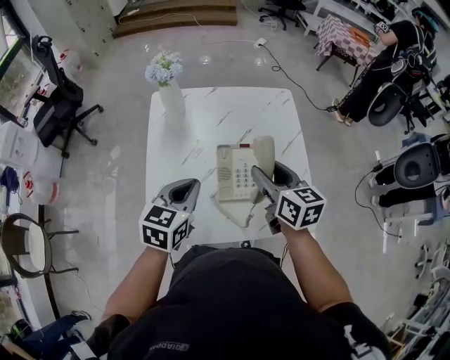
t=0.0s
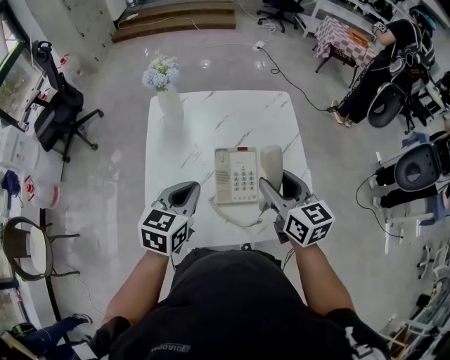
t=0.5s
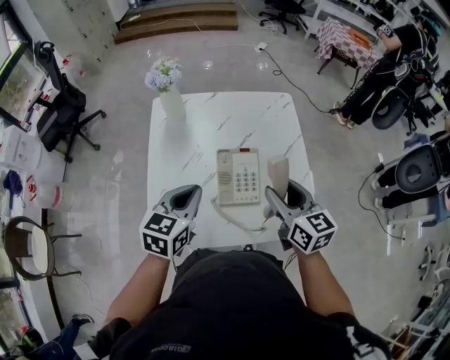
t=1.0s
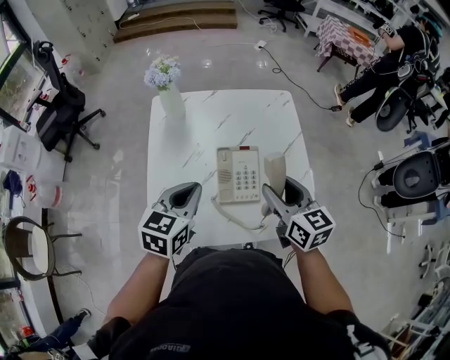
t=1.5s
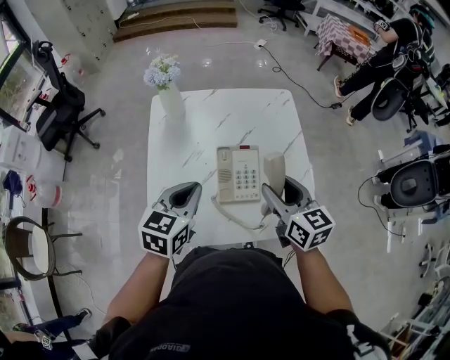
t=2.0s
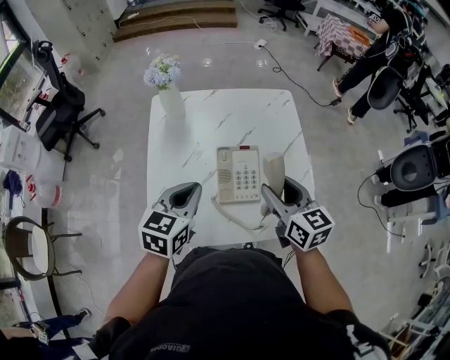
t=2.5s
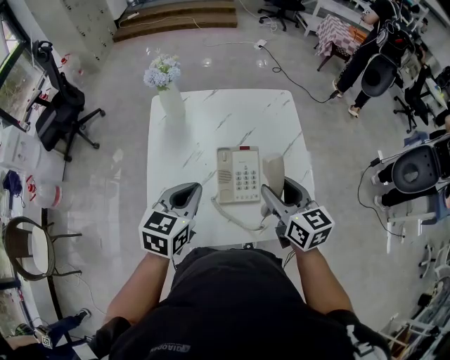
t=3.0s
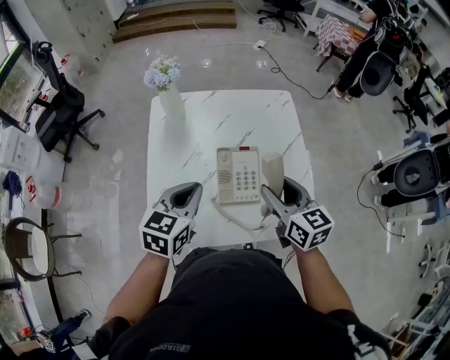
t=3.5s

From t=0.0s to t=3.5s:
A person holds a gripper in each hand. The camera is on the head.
From t=0.0s to t=2.0s: The grippers make only small movements.
From t=2.0s to t=3.5s: Both grippers stay put.

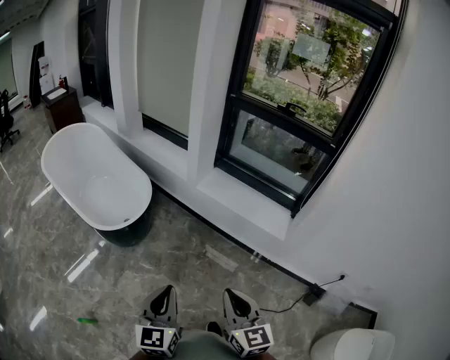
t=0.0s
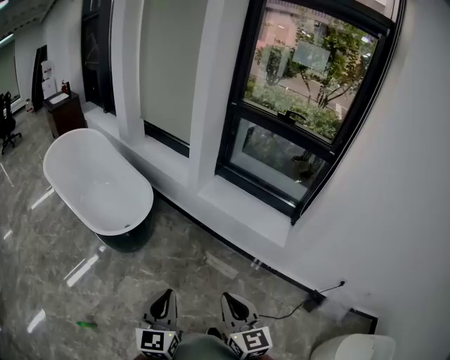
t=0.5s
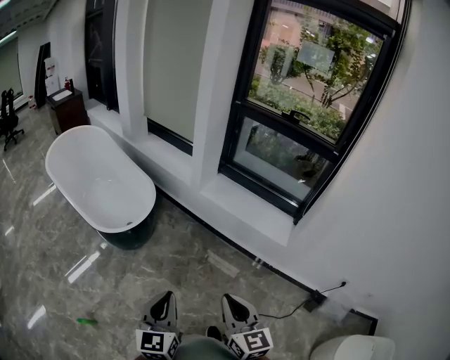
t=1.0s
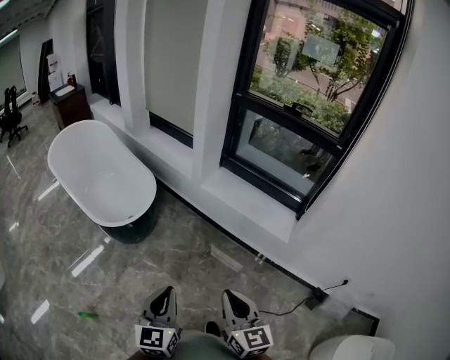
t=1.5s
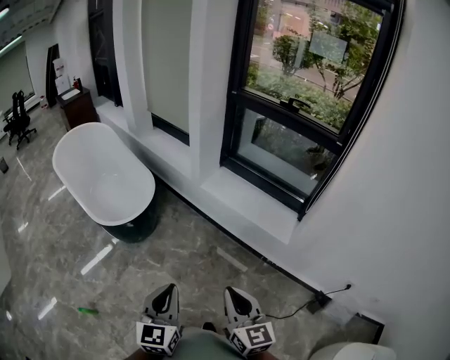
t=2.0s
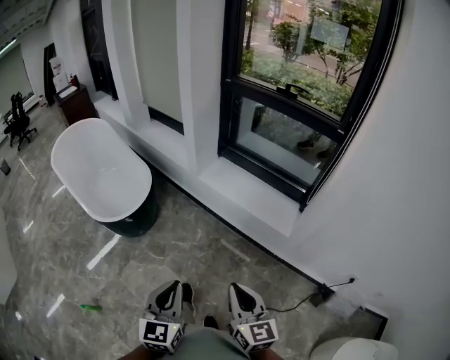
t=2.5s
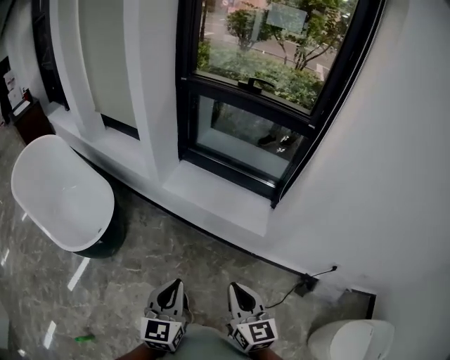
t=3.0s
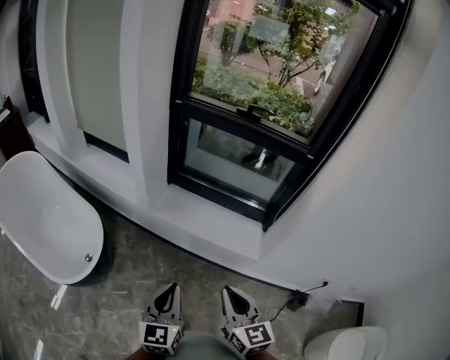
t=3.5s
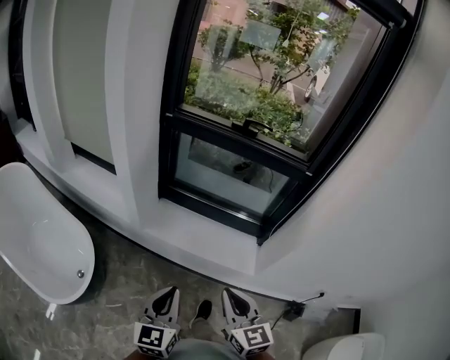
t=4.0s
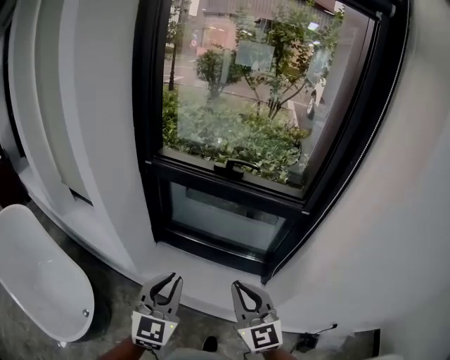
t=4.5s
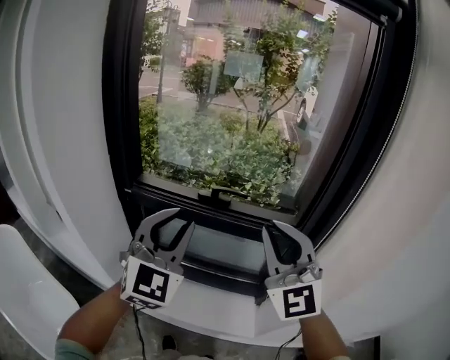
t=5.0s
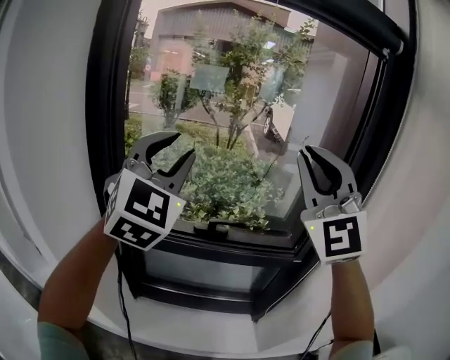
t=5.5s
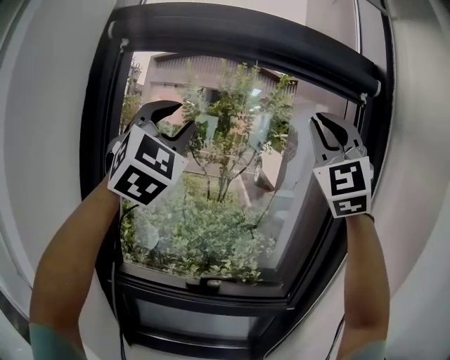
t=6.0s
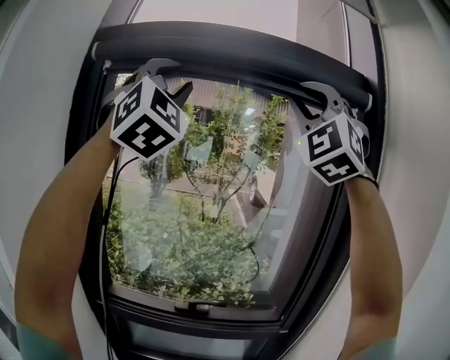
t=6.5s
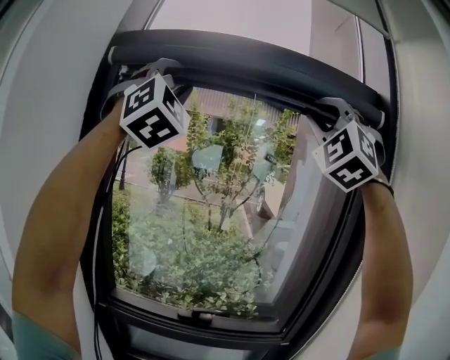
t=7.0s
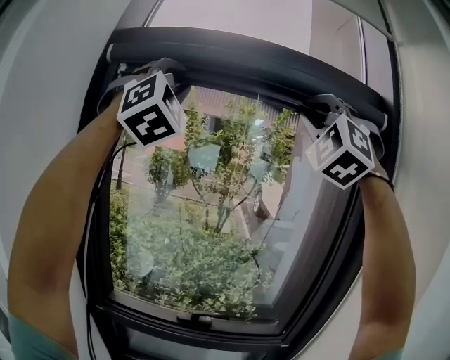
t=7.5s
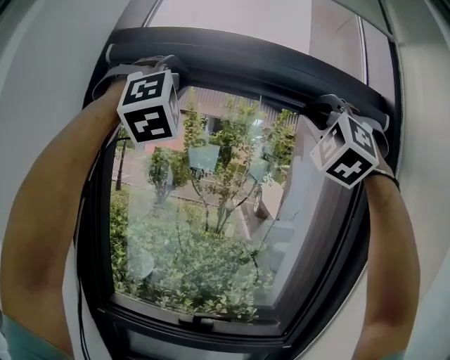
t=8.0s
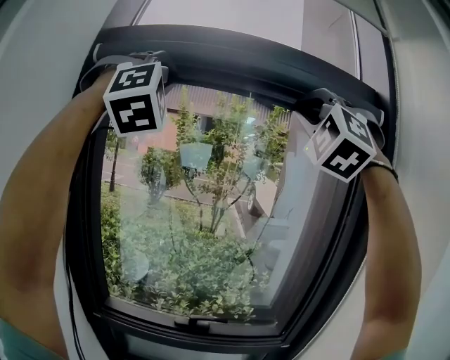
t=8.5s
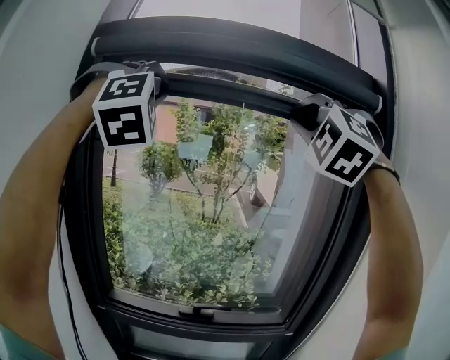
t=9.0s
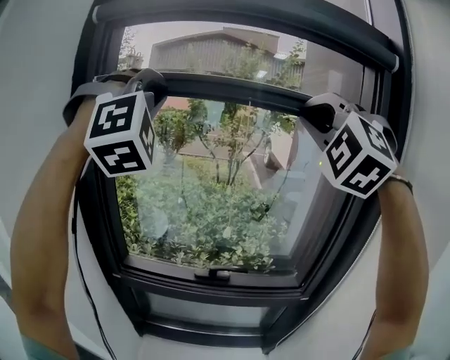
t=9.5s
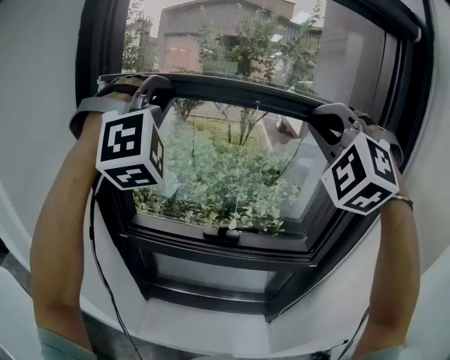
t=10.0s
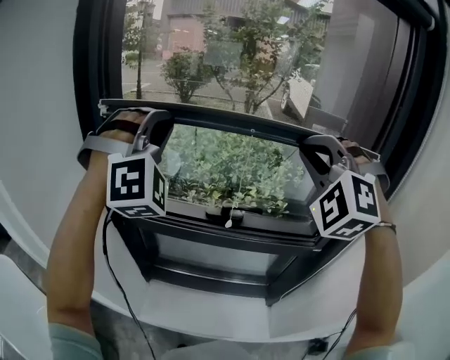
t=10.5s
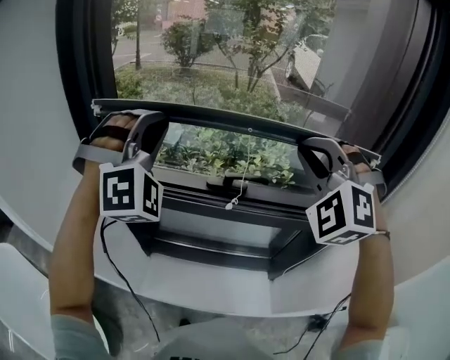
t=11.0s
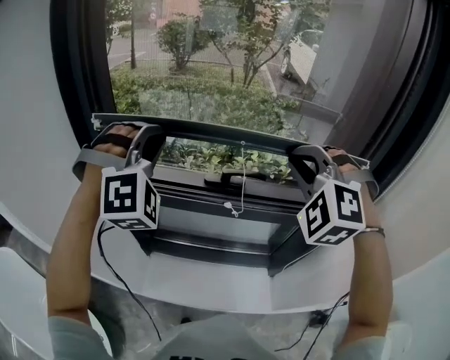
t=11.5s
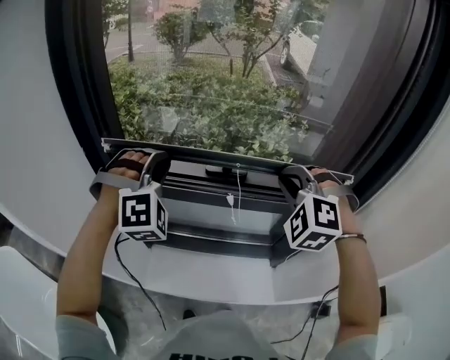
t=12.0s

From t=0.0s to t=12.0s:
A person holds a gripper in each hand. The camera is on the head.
From t=0.0s to t=2.0s: The grippers both shift to the right by roughly 10 cm.
From t=2.0s to t=4.0s: Both grippers move forward, approximately 35 cm. The left gripper changes its angle by some 30 degrees; the right gripper turns by roughly 20 degrees.
From t=4.0s to t=6.0s: The two grippers travel together, forward, roughly 50 cm. Both grippers travel together upward, roughly 70 cm. The left gripper twists approximately 60 degrees clockwise, seen from behind, and opens its fingers. The right gripper rolls counterclockwise, seen from behind, by approximately 70 degrees.
From t=6.0s to t=8.0s: The right gripper is displaced upward and forward by some 10 cm, and changes its angle by approximately 40 degrees. The left gripper is displaced upward by some 15 cm, swivels some 40 degrees, and closes its fingers.
From t=8.0s to t=10.0s: The two grippers go about 25 cm downward. The right gripper turns by roughly 20 degrees.
From t=10.0s to t=12.0s: The two grippers go approximately 35 cm downward. The right gripper changes its angle by some 30 degrees. Meanwhile the left gripper rotates approximately 30 degrees.

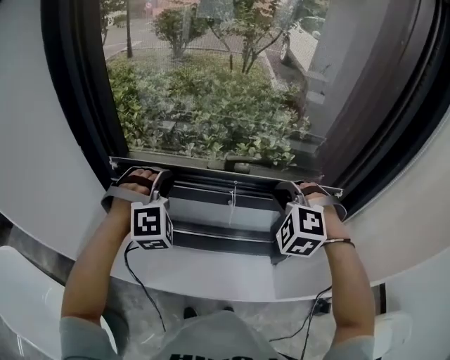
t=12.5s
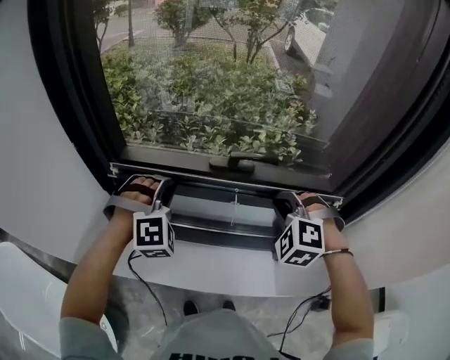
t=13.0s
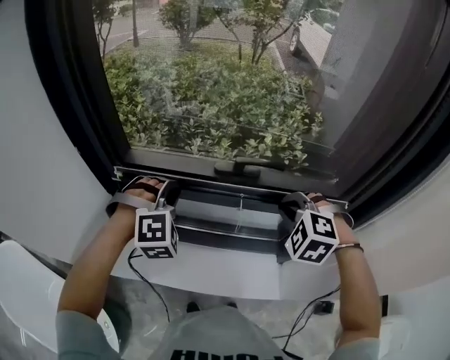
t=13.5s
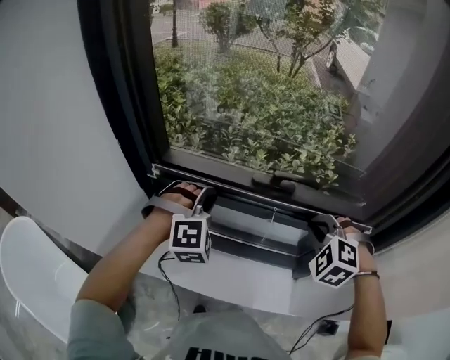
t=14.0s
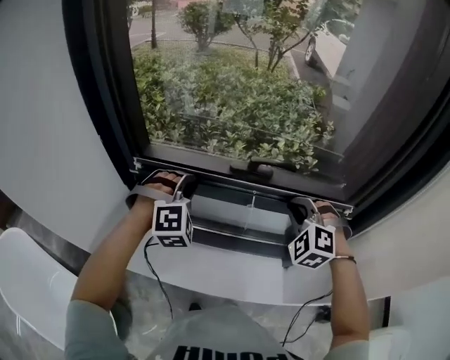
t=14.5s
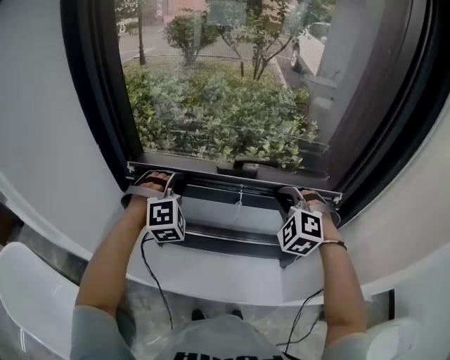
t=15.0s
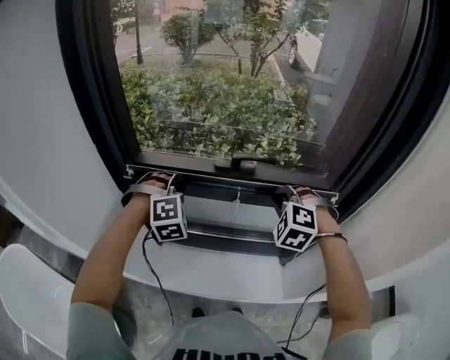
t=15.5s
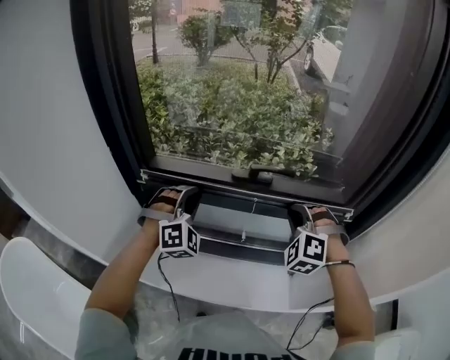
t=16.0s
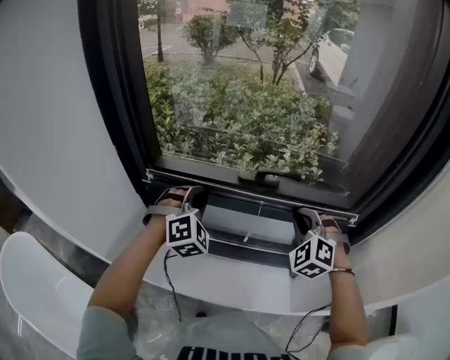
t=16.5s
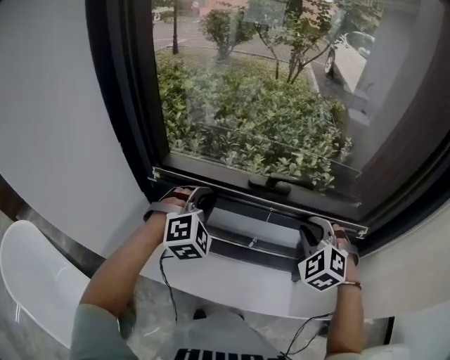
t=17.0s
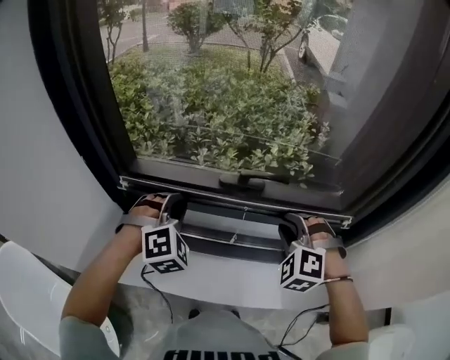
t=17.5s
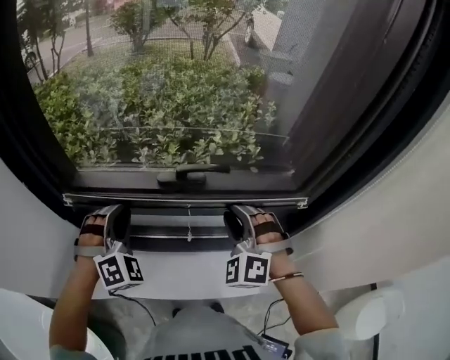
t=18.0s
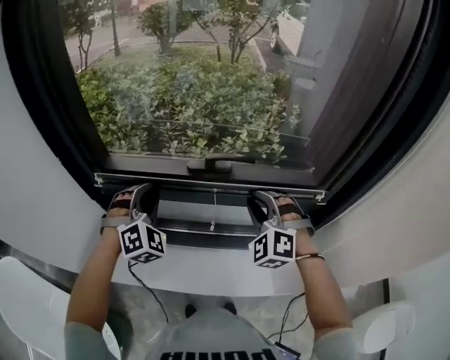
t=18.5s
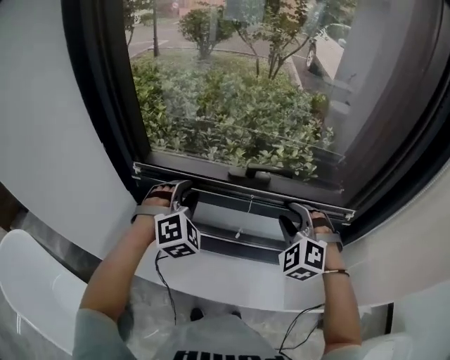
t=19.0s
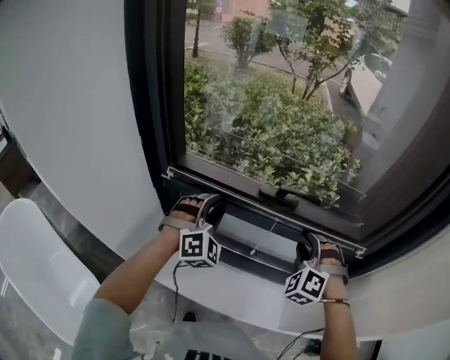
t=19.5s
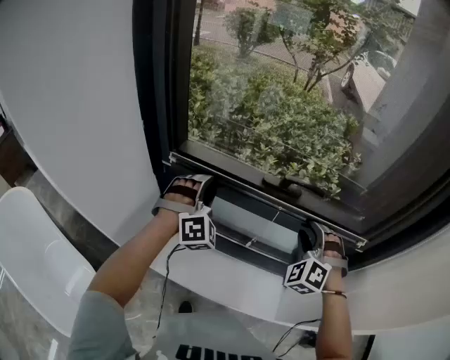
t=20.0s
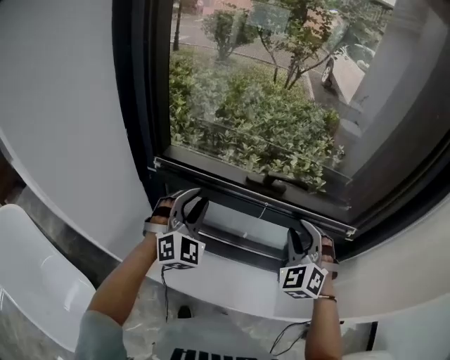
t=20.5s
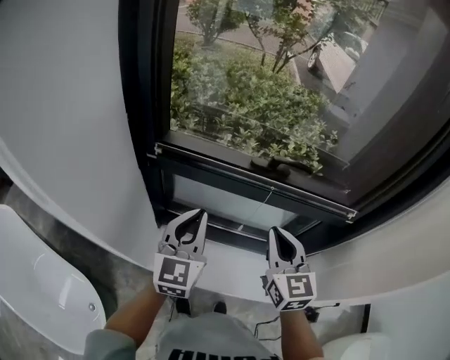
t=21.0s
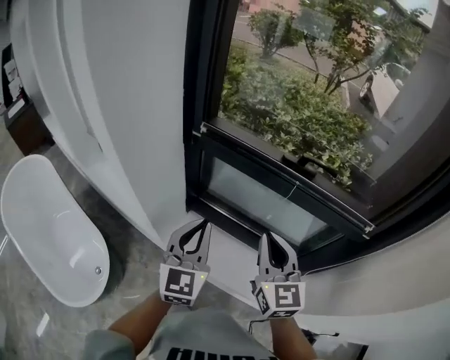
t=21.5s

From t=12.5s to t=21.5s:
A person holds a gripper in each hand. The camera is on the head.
From t=12.5s to t=14.5s: There are only small adjustments of the grippers.
From t=14.5s to t=17.0s: The grippers stay close to where they were, moving slightly.
From t=17.0s to t=19.5s: The right gripper opens.
From t=19.5s to t=21.5s: The right gripper goes about 20 cm backward and to the left, twists roughly 60 degrees clockwise, seen from behind, and closes its fingers. Meanwhile the left gripper goes about 25 cm backward, twists roughly 60 degrees counterclockwise, seen from behind, and closes up.

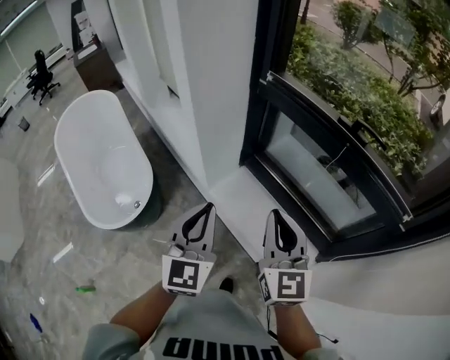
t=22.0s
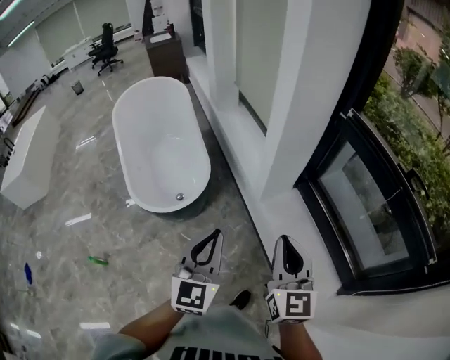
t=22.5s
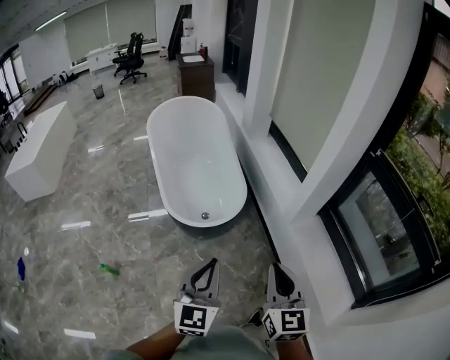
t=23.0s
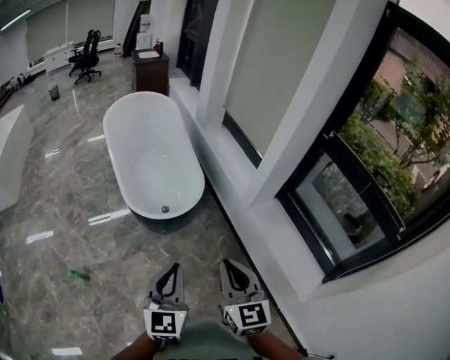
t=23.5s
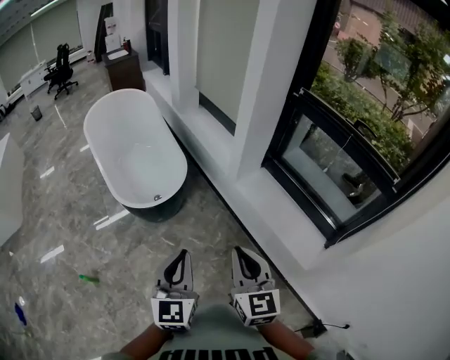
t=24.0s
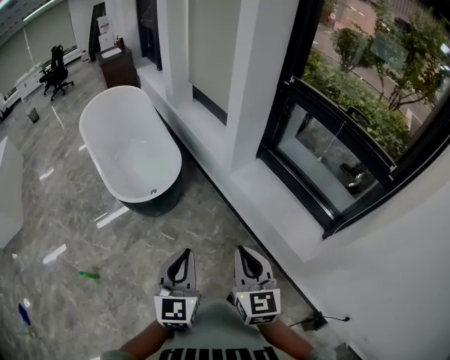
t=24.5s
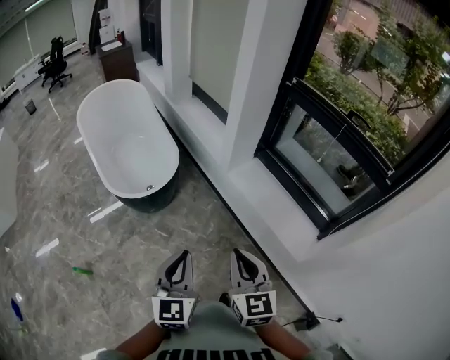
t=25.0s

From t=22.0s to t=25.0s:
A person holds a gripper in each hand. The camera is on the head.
From t=22.0s to t=23.5s: Both grippers are carried to the left and backward, about 50 cm. The left gripper swivels some 20 degrees. The right gripper turns by roughly 30 degrees.
From t=23.5s to t=25.0s: The left gripper travels to the right by roughly 15 cm. The right gripper travels to the right and backward by approximately 15 cm.
